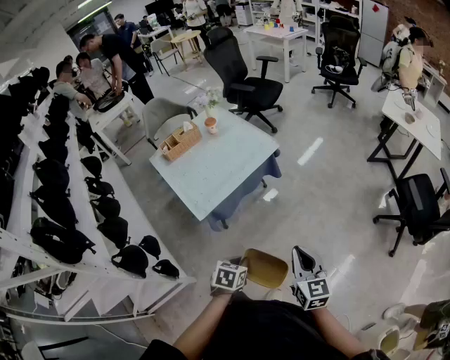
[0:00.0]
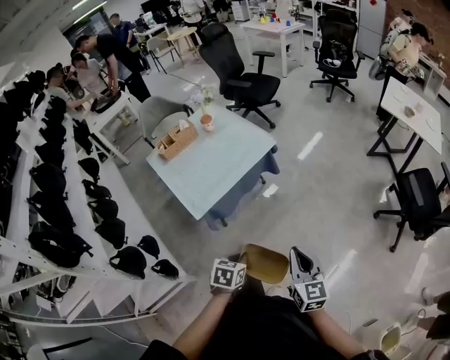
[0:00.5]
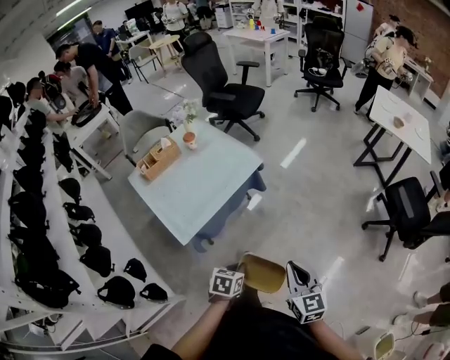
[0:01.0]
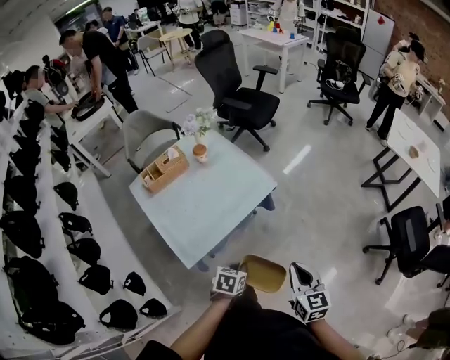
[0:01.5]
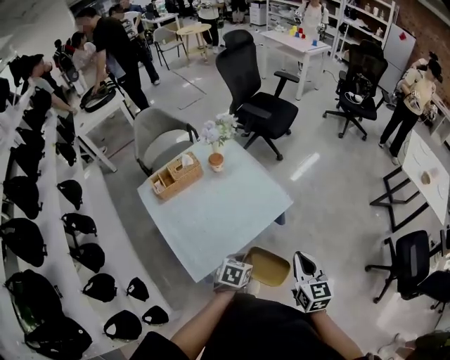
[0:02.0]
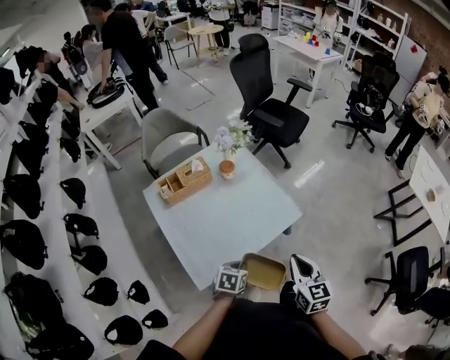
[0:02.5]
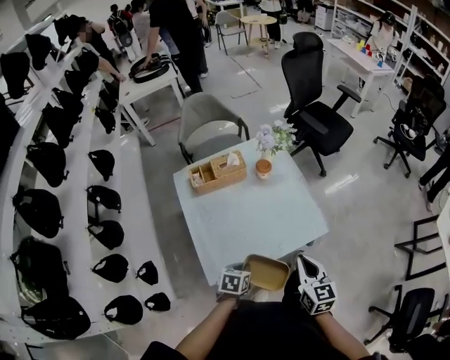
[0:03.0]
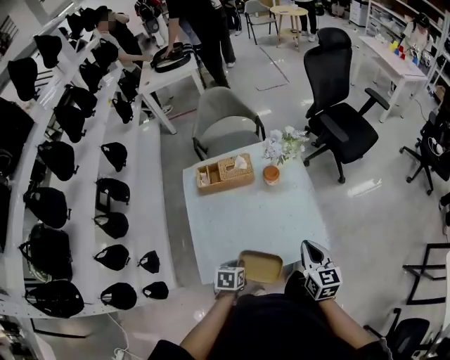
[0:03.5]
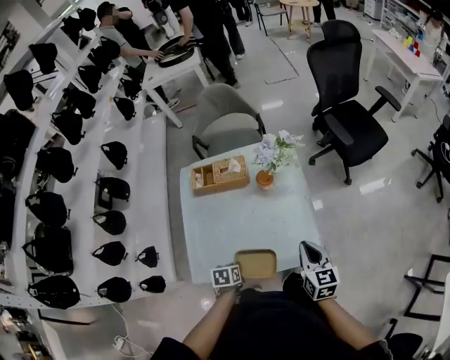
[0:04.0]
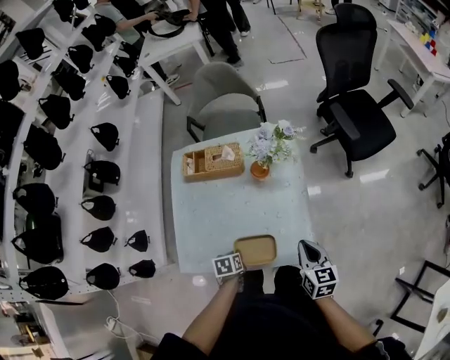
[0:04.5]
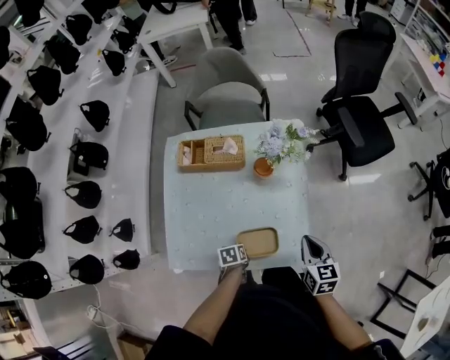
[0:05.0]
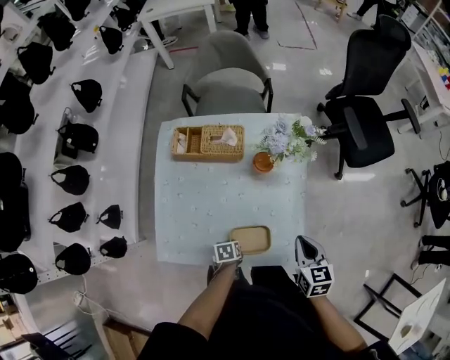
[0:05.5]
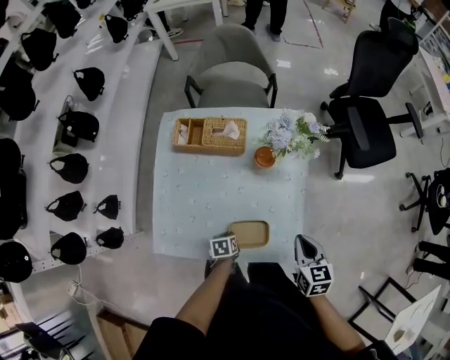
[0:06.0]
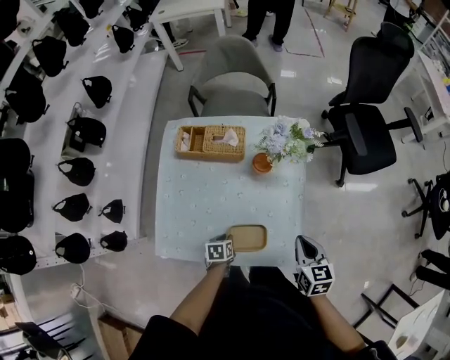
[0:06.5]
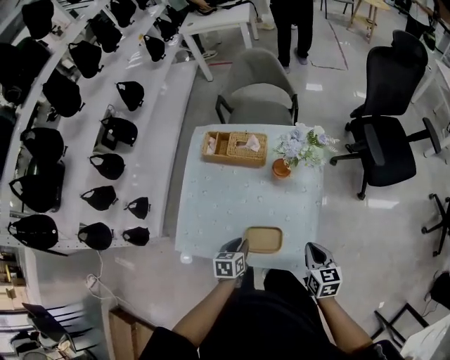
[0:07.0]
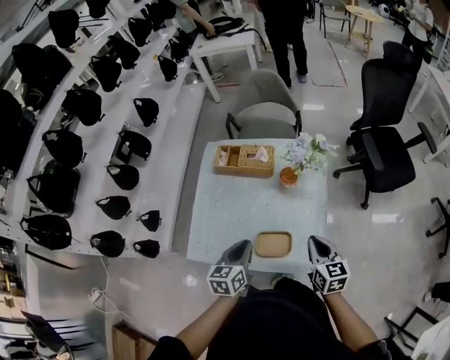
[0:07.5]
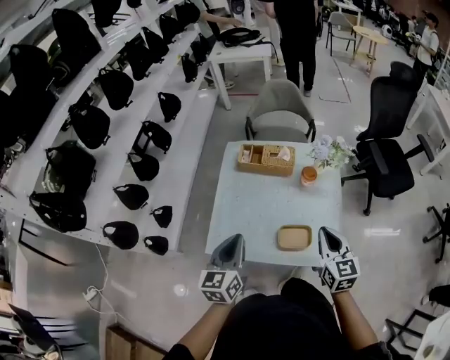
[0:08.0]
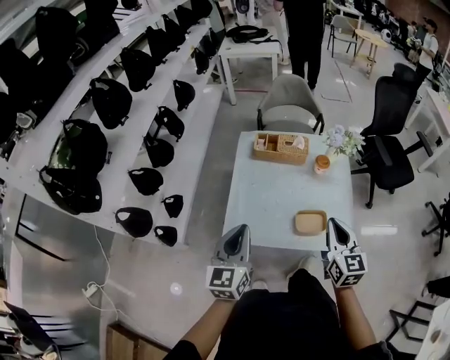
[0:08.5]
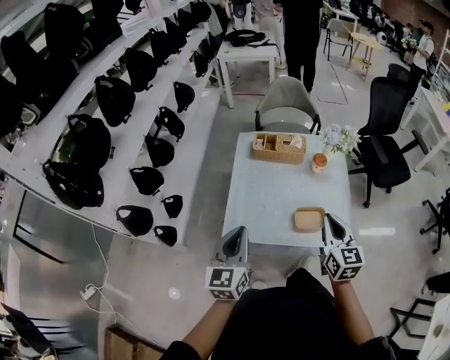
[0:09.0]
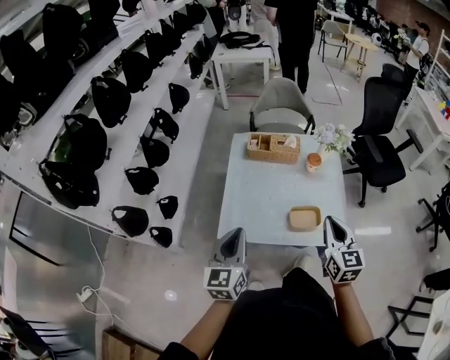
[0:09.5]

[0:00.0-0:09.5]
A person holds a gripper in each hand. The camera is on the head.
0:00.0 to 0:02.0: The two grippers go approximately 35 cm forward.
0:02.0 to 0:04.0: The right gripper ends up some 35 cm from where it was, and rotates approximately 30 degrees, while the left gripper ends up about 20 cm from where it was, and rolls counterclockwise, seen from behind, by about 50 degrees.
0:04.0 to 0:05.5: The right gripper travels downward and forward by about 10 cm, while the left gripper travels downward by about 15 cm.
0:05.5 to 0:07.5: The right gripper heads upward, covering some 5 cm. The left gripper shifts roughly 30 cm upward, and angles its fingers upward, by approximately 40 degrees.
0:07.5 to 0:09.5: Both grippers travel together to the left, backward and upward, roughly 30 cm. The left gripper rotates approximately 20 degrees; the right gripper swivels about 20 degrees.

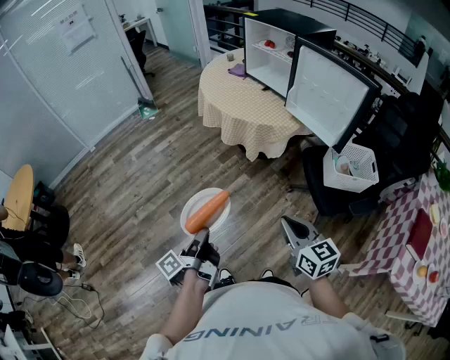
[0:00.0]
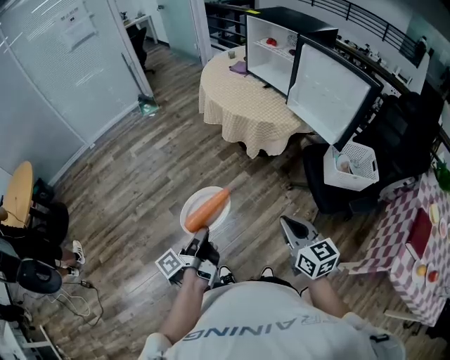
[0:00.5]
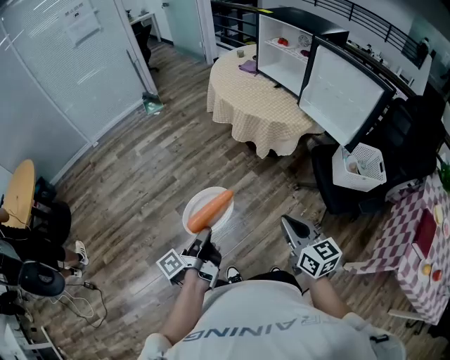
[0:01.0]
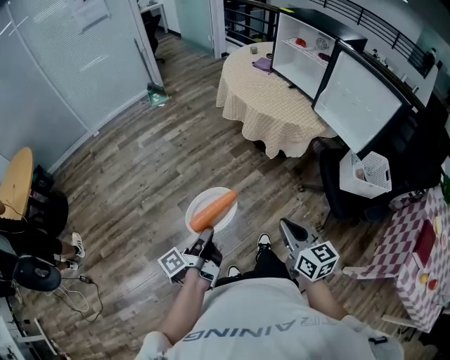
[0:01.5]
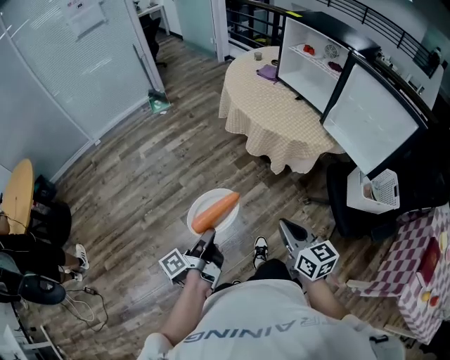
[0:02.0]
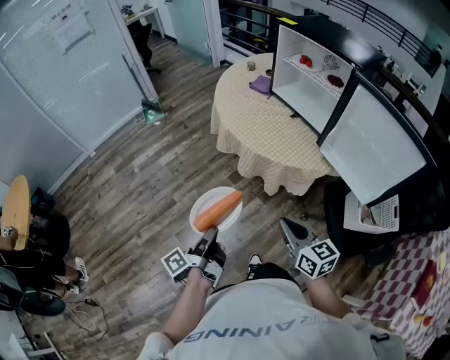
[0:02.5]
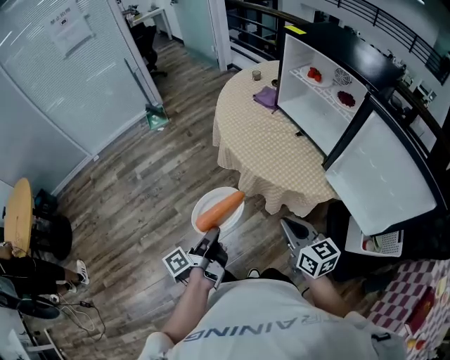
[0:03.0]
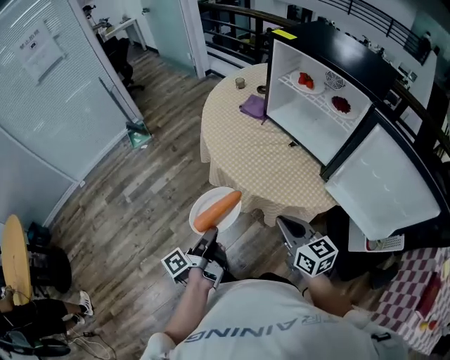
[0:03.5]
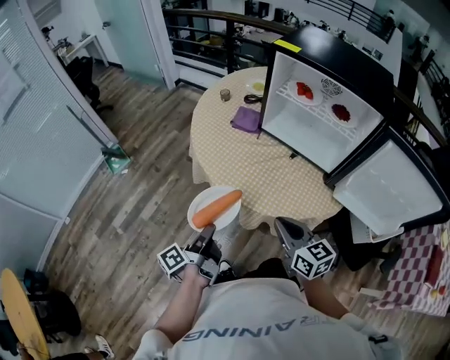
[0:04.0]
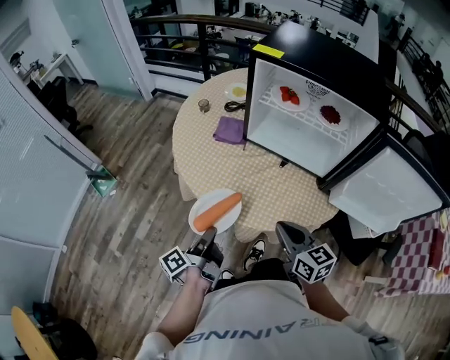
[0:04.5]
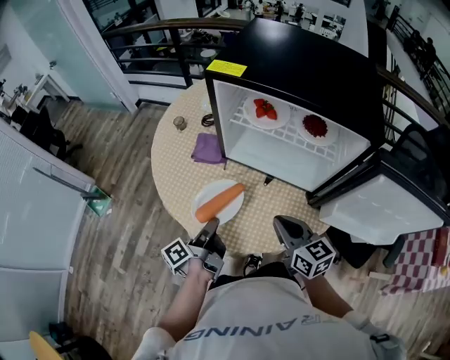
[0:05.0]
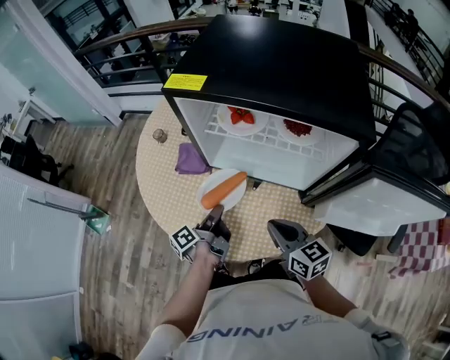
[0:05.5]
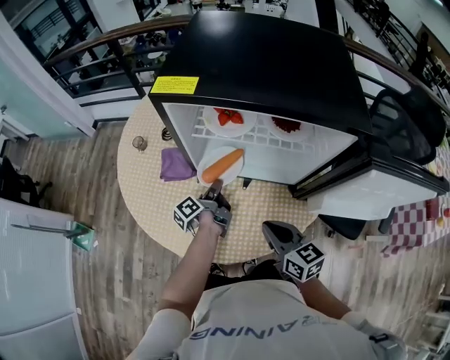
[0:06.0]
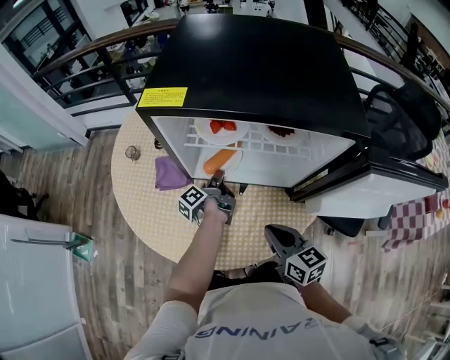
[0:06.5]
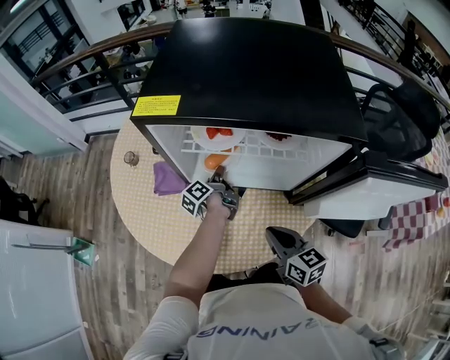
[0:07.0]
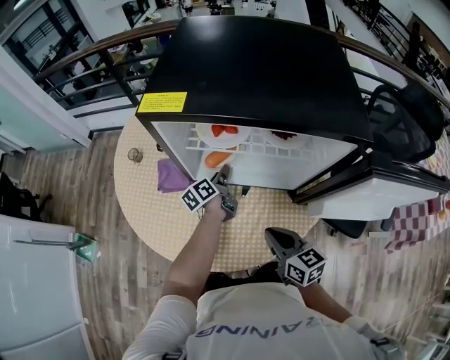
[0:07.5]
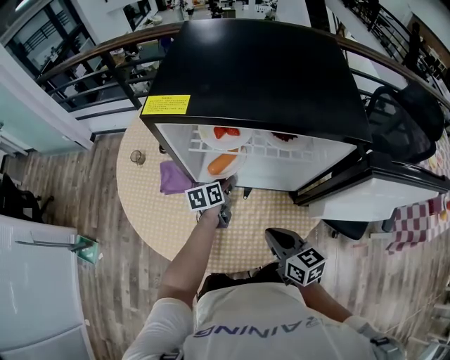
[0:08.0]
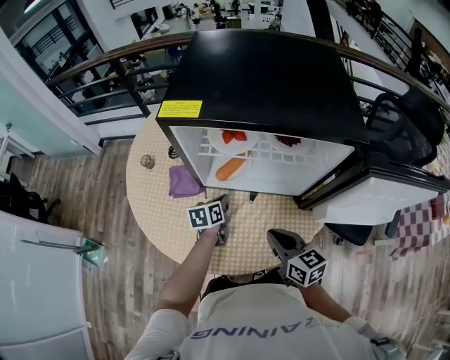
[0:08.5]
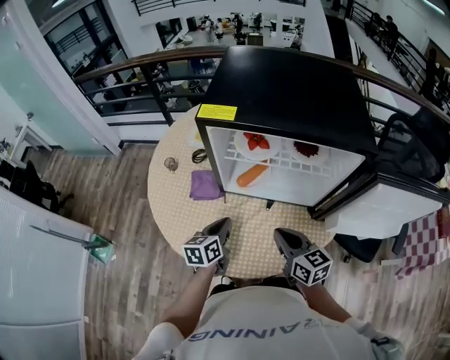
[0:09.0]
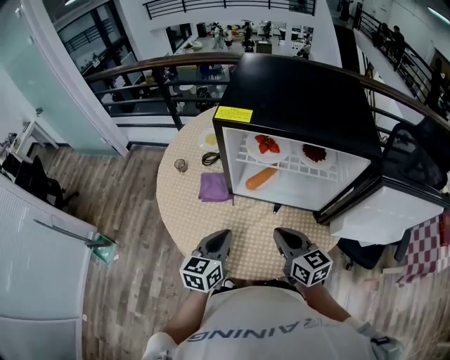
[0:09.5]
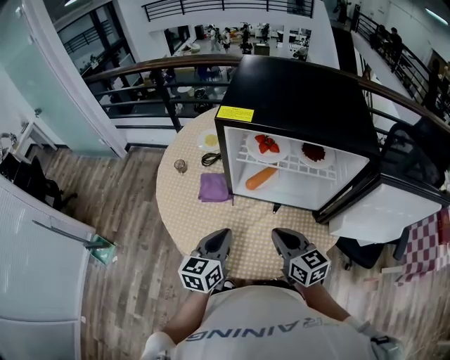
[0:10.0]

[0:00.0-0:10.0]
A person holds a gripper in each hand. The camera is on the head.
0:00.0 to 0:02.0: The right gripper changes place by about 20 cm.
0:02.0 to 0:04.0: The right gripper moves about 40 cm.
0:04.0 to 0:06.0: The right gripper ends up some 20 cm from where it was, and turns by some 20 degrees.
0:08.0 to 0:10.0: The right gripper changes place by roughly 10 cm.

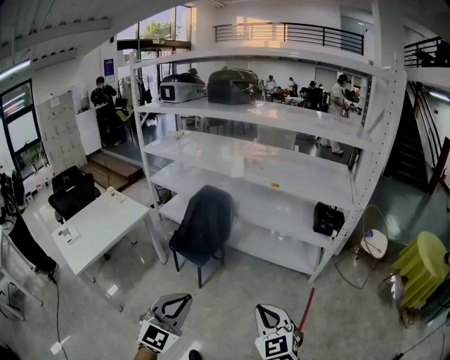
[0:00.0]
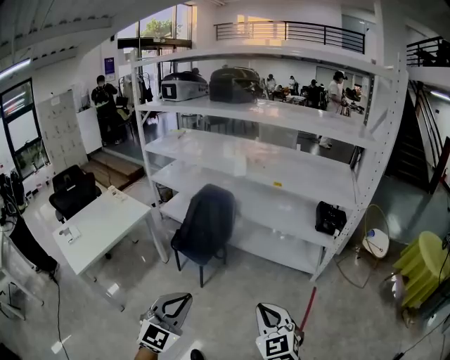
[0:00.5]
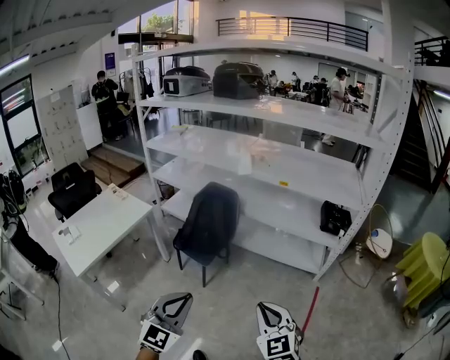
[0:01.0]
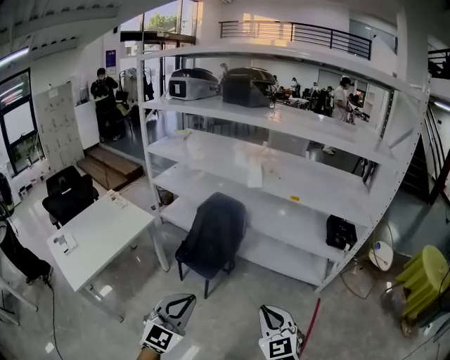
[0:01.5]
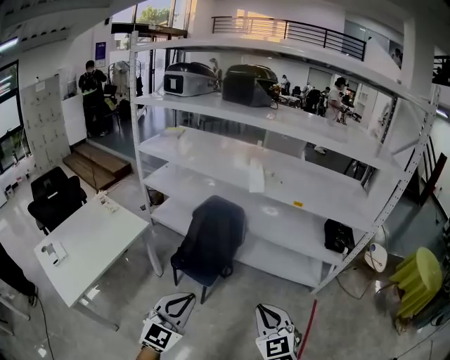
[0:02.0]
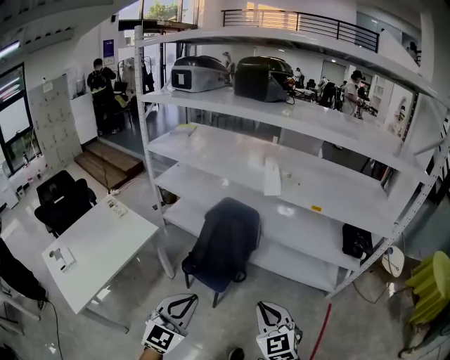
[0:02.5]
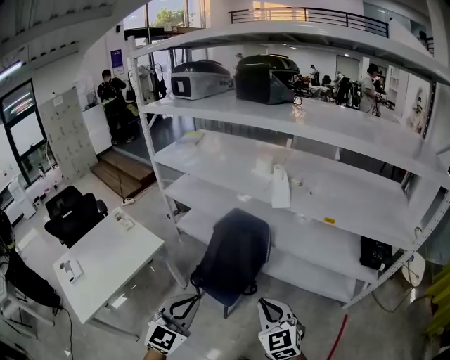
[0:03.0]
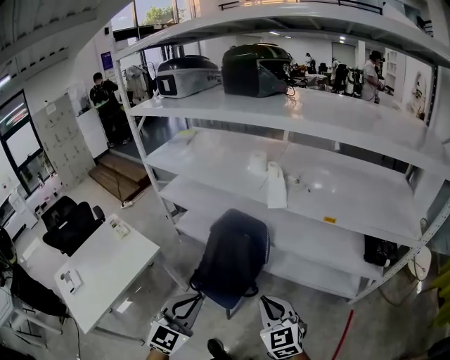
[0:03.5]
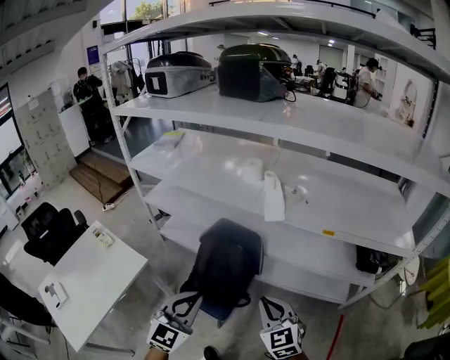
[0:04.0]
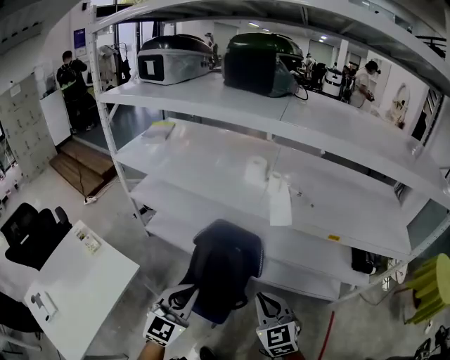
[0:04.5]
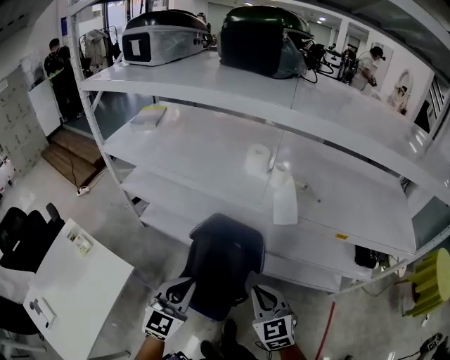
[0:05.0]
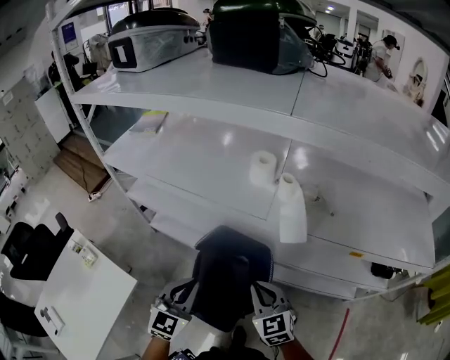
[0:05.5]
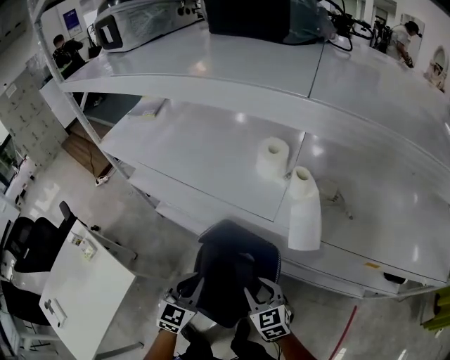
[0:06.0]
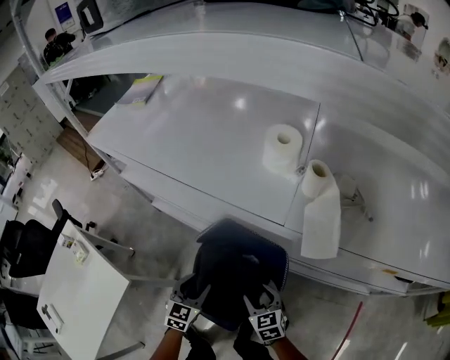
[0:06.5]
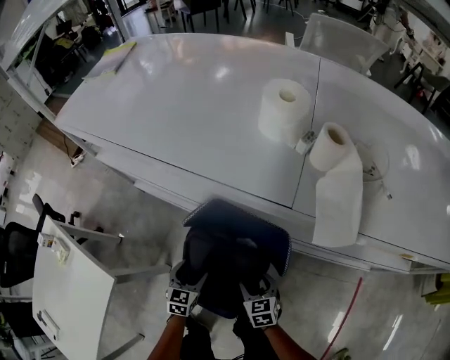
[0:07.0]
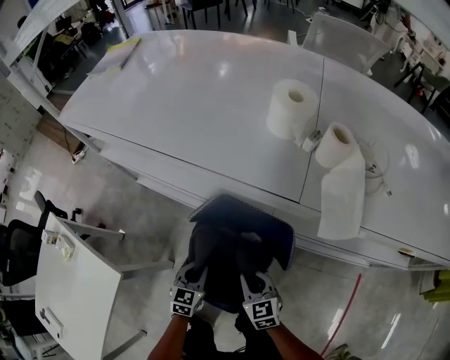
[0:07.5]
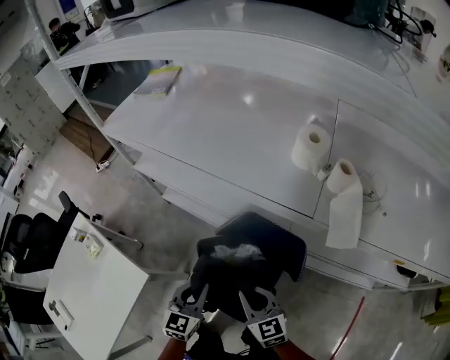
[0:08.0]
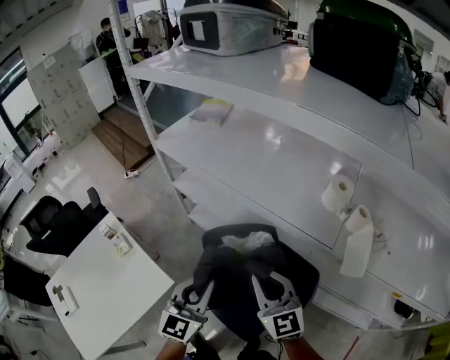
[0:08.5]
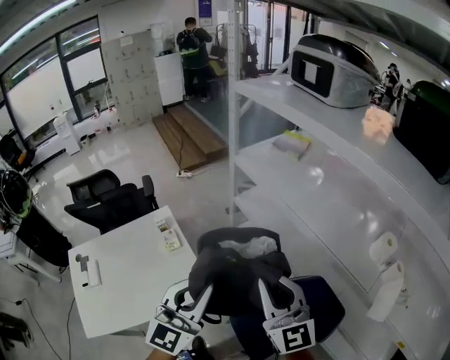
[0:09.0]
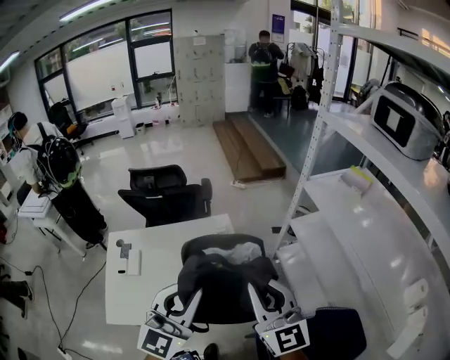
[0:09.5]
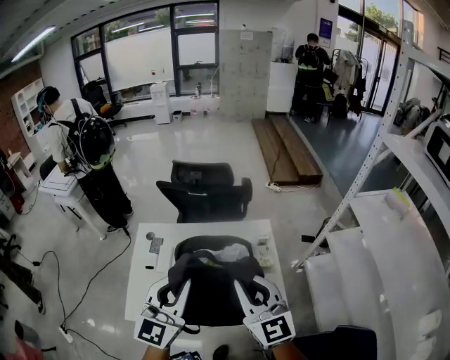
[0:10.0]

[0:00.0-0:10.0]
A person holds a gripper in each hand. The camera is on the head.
0:00.0 to 0:02.0: The left gripper goes roughly 30 cm forward and to the left; the right gripper is displaced to the left and forward by roughly 30 cm.
0:02.0 to 0:04.0: Both grippers move forward, some 35 cm.
0:04.0 to 0:06.0: Both grippers move forward and downward, some 40 cm. The right gripper opens.
0:06.0 to 0:08.0: Both grippers move to the left, some 10 cm. The left gripper goes downward and returns, roughly 30 cm each way, and opens and closes again. The right gripper moves some 25 cm downward and comes back, and opens, then closes again.
0:08.0 to 0:10.0: Both grippers are carried some 70 cm. The right gripper changes its angle by about 60 degrees. The left gripper turns by some 60 degrees.
